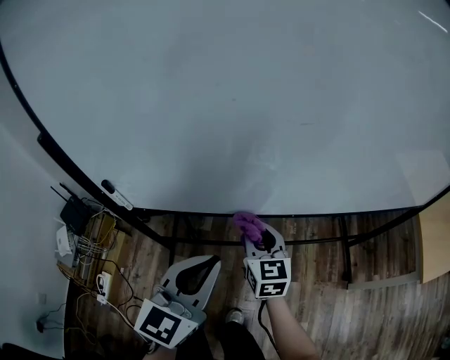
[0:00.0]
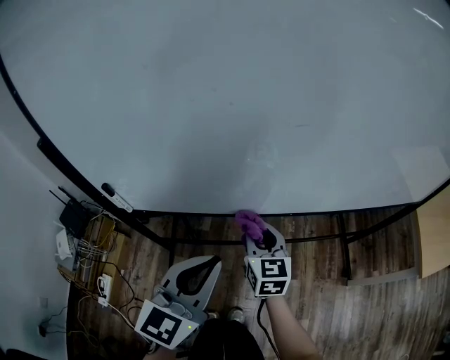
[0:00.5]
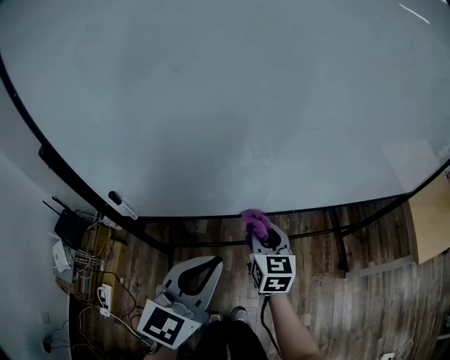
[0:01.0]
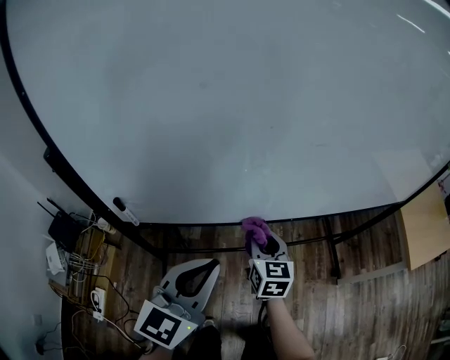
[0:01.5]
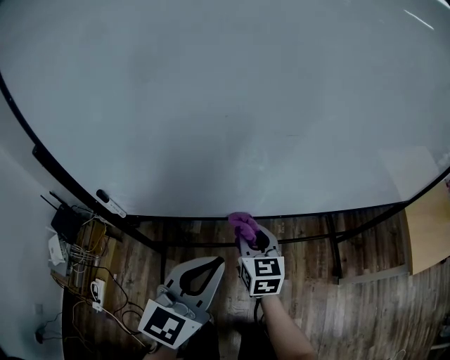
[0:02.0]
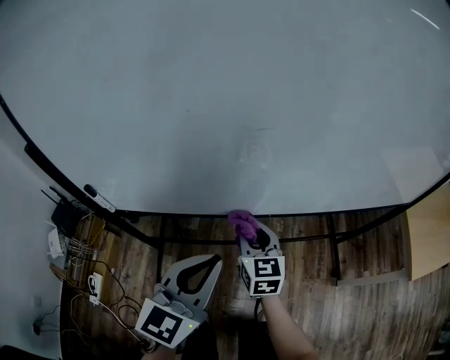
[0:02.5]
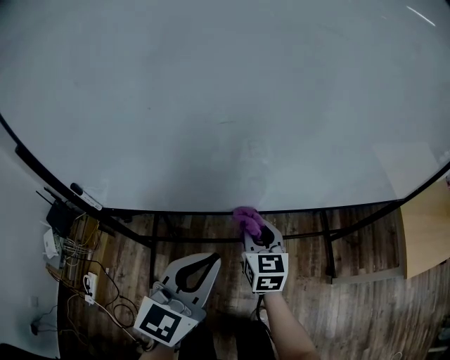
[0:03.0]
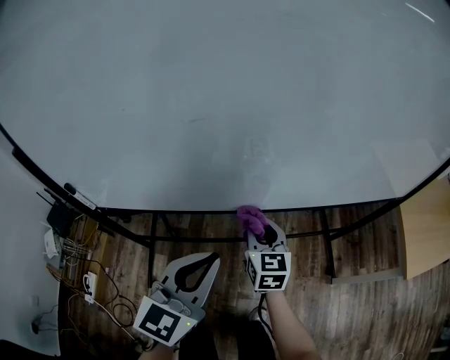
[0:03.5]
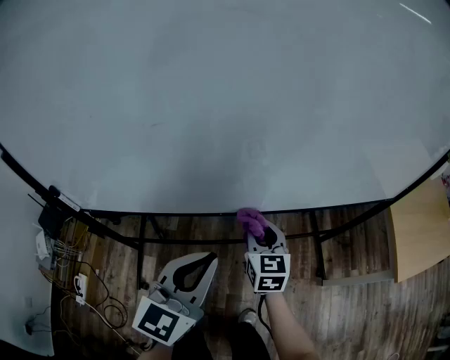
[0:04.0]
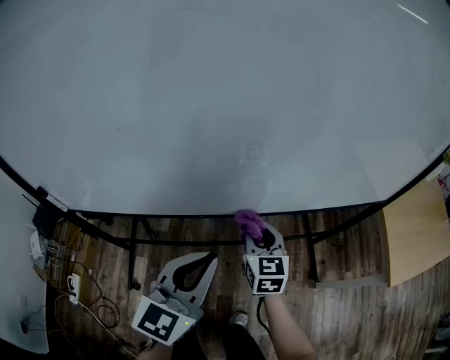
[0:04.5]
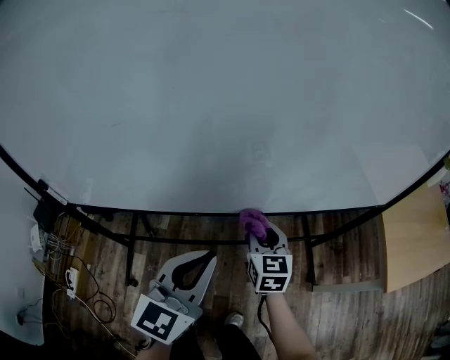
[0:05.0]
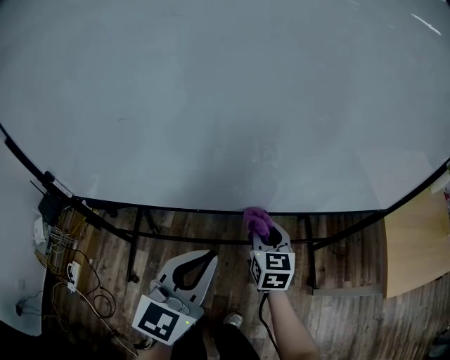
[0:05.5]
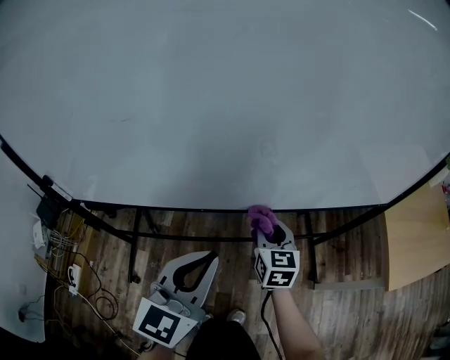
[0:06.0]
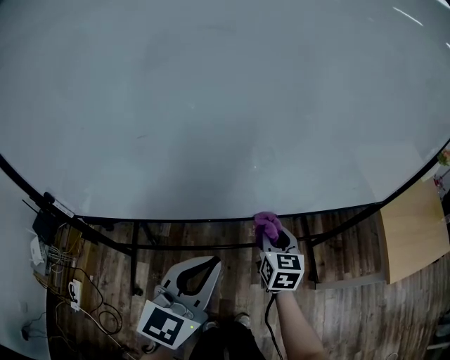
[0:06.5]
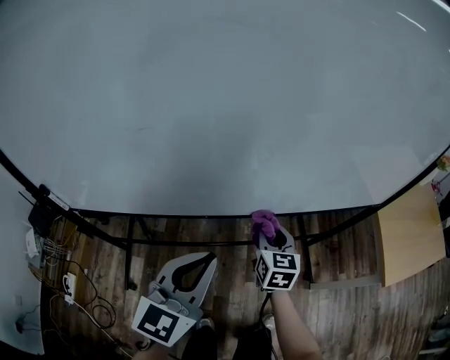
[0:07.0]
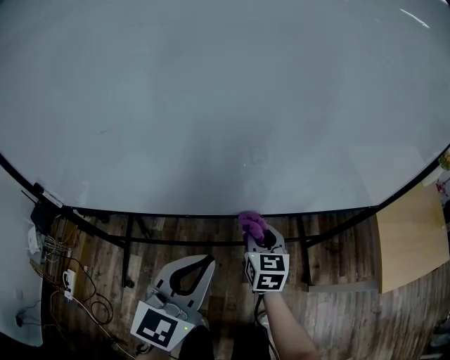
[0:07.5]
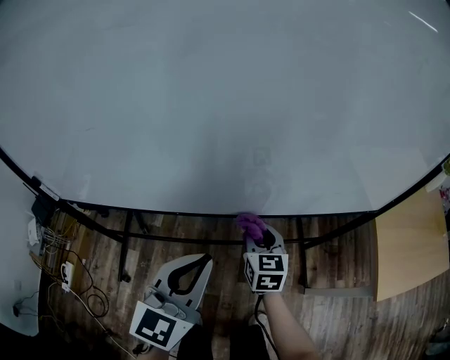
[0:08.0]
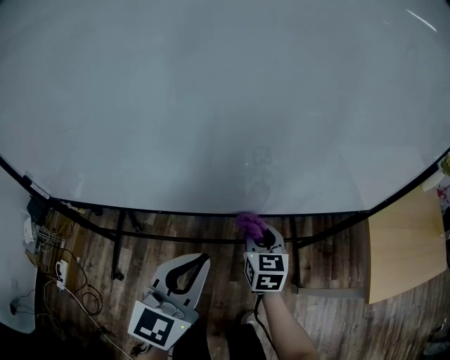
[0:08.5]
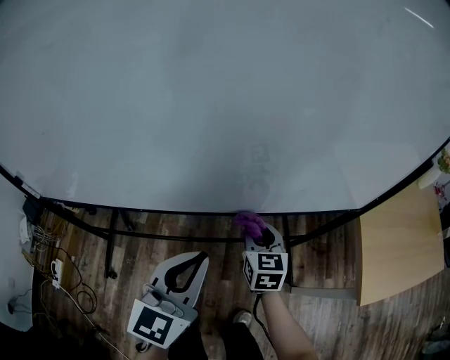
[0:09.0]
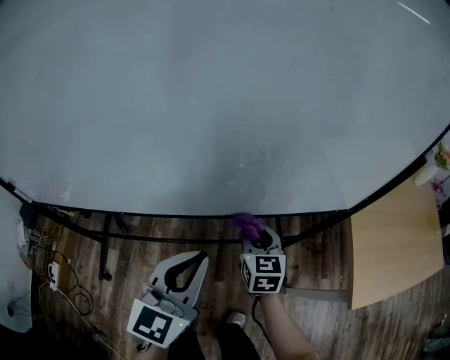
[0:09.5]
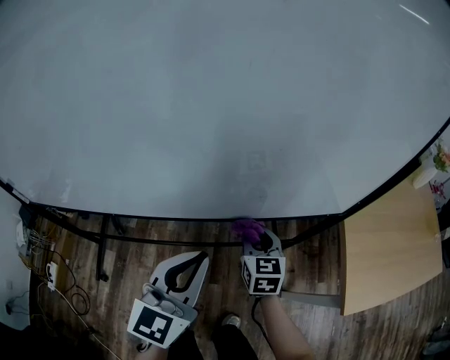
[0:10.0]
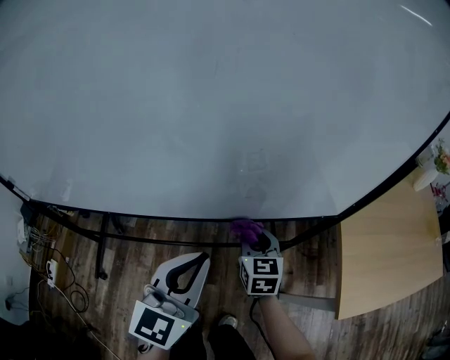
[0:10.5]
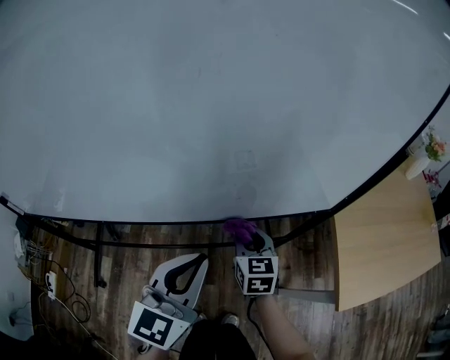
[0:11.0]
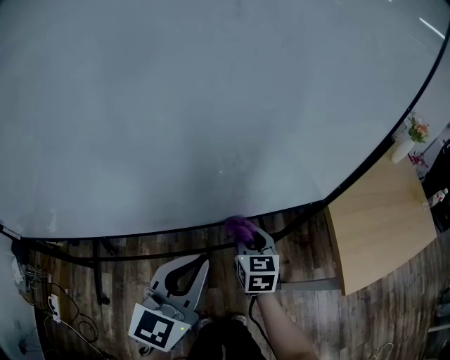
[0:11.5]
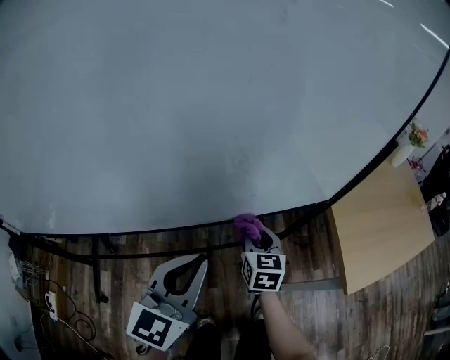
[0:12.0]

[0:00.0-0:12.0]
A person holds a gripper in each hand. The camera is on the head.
0:00.0 to 0:02.0: The grippers stay close to where they were, moving slightly.
0:02.0 to 0:04.0: The two grippers go roughly 15 cm to the right.
0:04.0 to 0:06.0: Both grippers move to the right, some 5 cm.
0:06.0 to 0:08.0: The left gripper shifts by approximately 5 cm.
0:08.0 to 0:10.0: Both grippers move to the right, roughly 15 cm.
0:10.0 to 0:12.0: The grippers stay close to where they were, moving slightly.

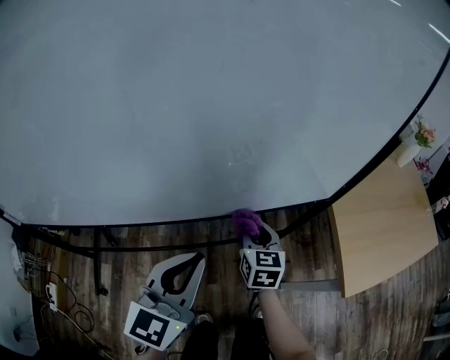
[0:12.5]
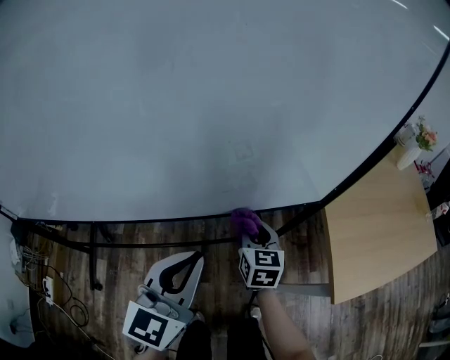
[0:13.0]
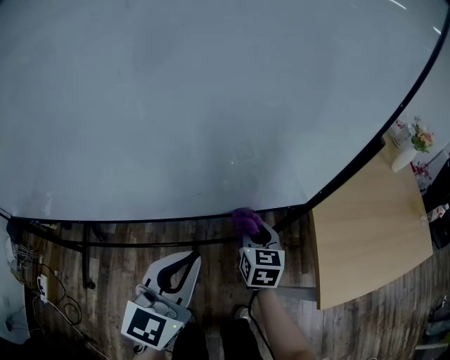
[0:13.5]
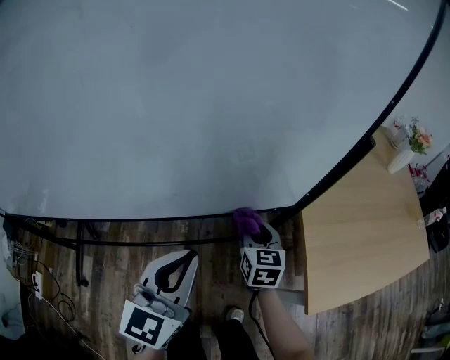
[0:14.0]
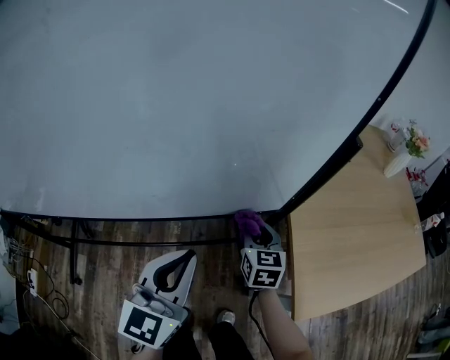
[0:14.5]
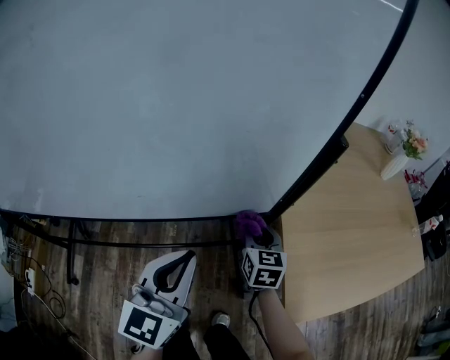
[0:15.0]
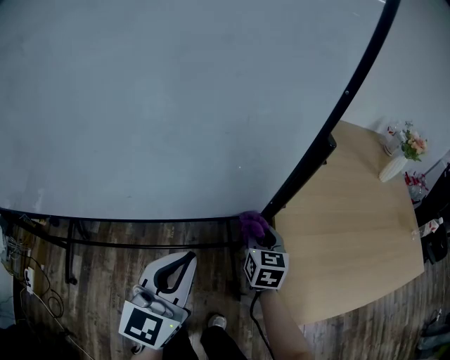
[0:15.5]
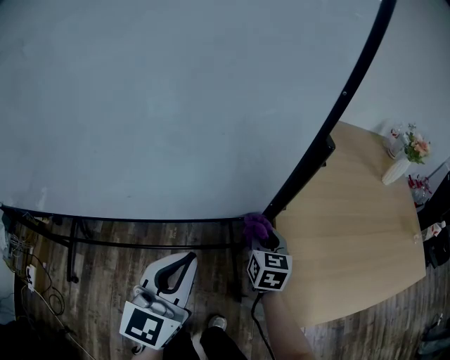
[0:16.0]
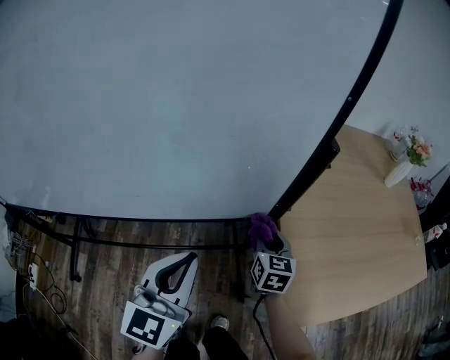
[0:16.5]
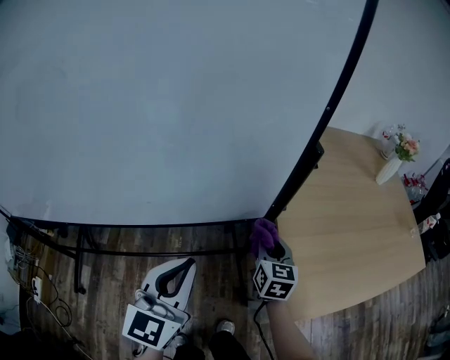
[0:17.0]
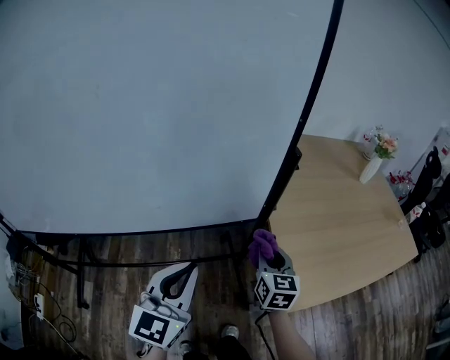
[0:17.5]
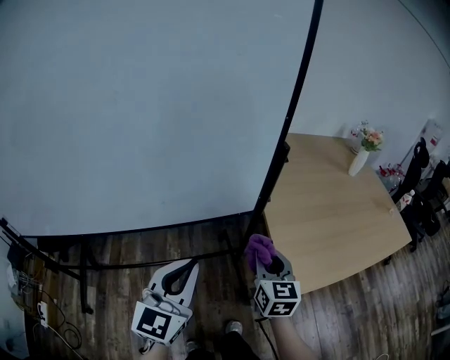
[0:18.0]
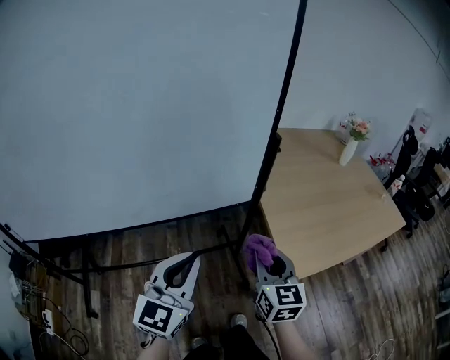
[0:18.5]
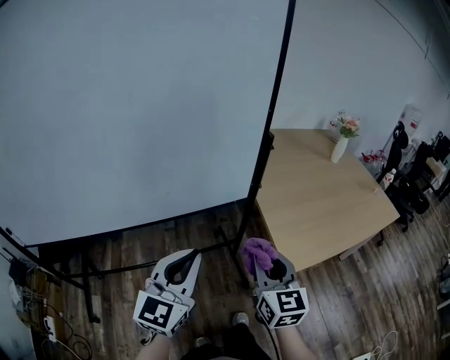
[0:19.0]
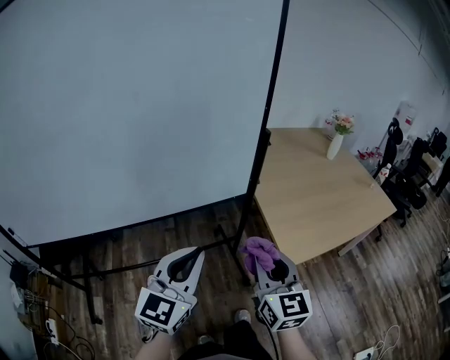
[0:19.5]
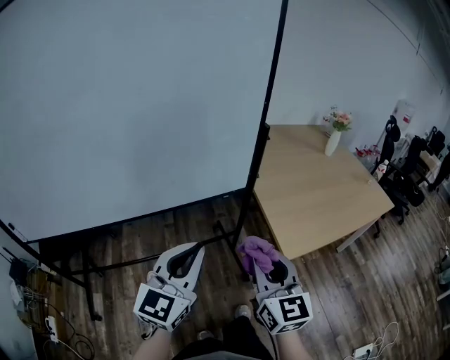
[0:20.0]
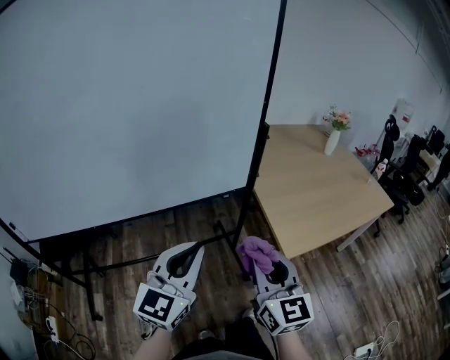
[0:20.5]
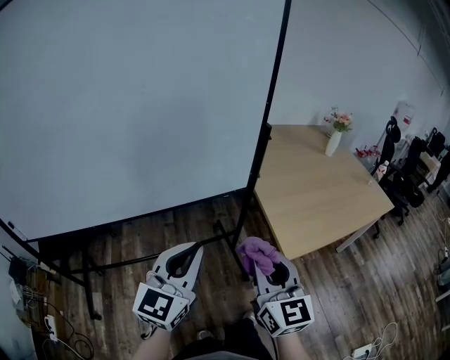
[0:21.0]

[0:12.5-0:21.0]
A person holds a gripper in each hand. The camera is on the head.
0:12.5 to 0:14.5: The right gripper heads to the right, covering about 15 cm. The left gripper shifts some 15 cm to the right and forward.
0:14.5 to 0:16.5: The left gripper moves to the right, approximately 5 cm; the right gripper heads to the right, covering some 10 cm.
0:16.5 to 0:19.0: The right gripper heads backward and upward, covering roughly 35 cm. The left gripper travels backward and upward by approximately 20 cm.
0:19.0 to 0:21.0: The right gripper shifts about 10 cm backward.

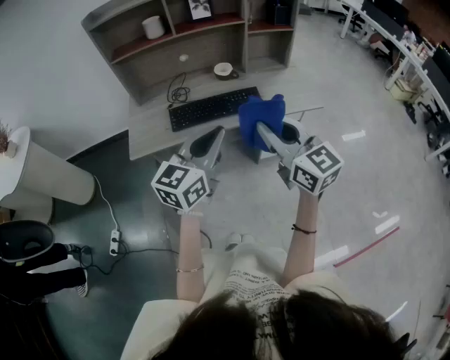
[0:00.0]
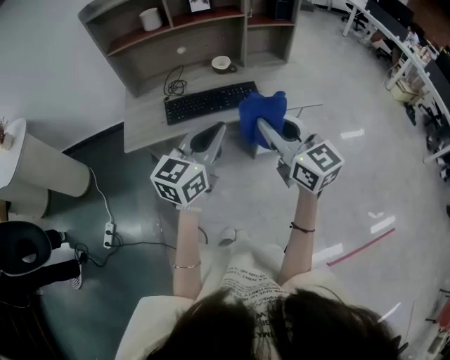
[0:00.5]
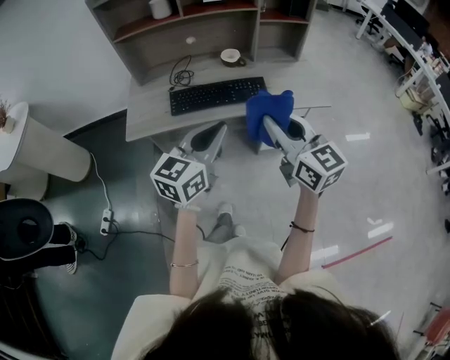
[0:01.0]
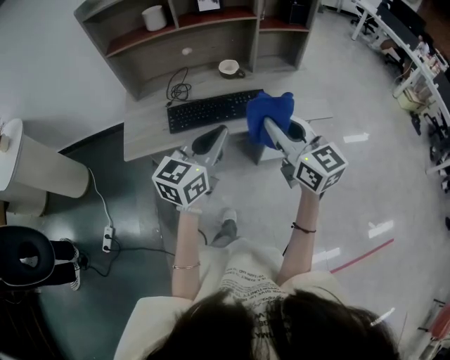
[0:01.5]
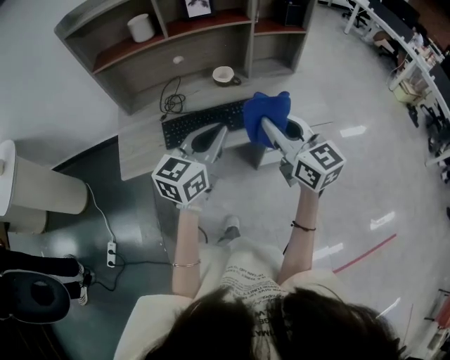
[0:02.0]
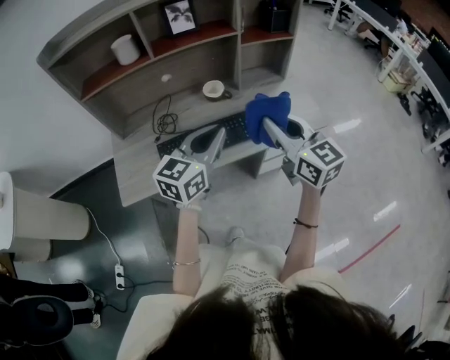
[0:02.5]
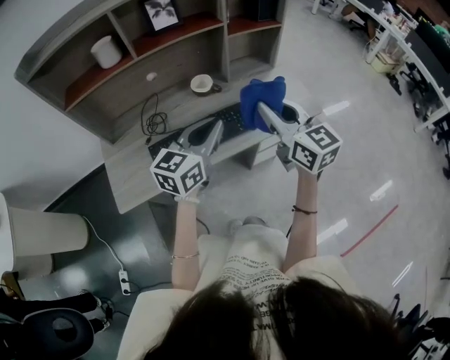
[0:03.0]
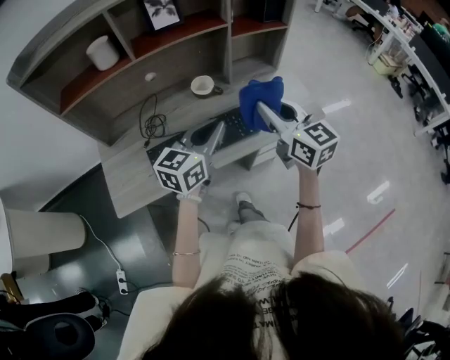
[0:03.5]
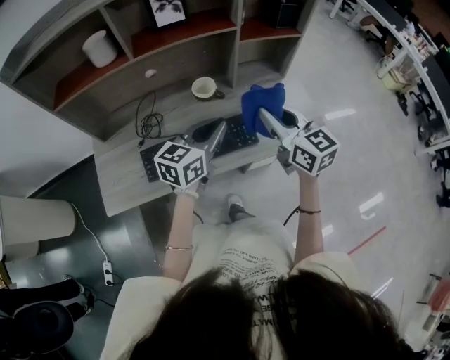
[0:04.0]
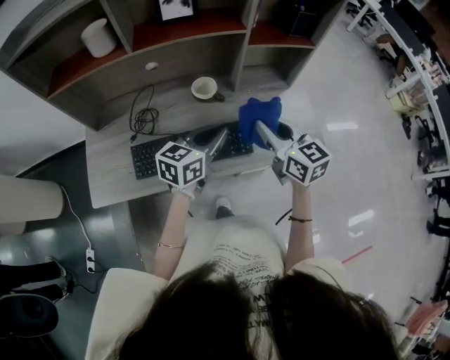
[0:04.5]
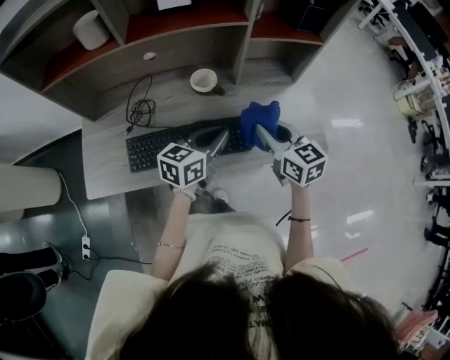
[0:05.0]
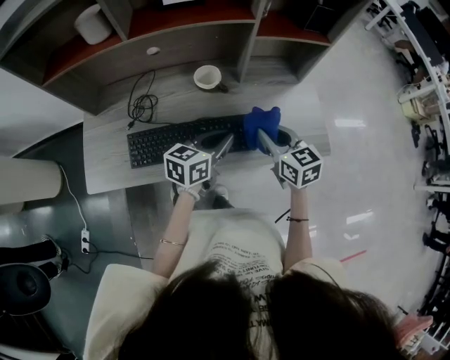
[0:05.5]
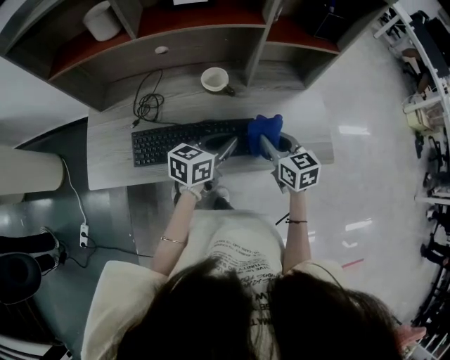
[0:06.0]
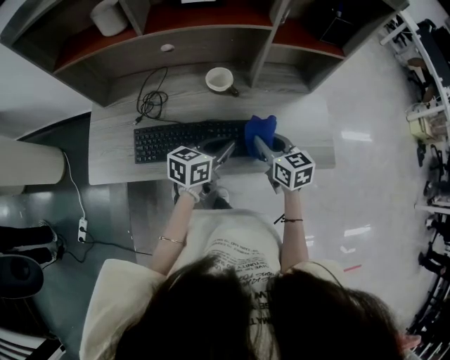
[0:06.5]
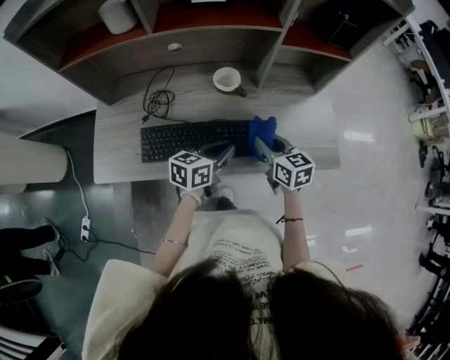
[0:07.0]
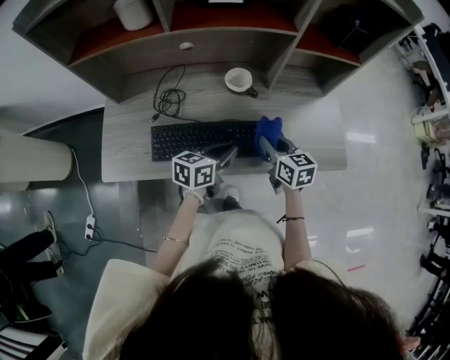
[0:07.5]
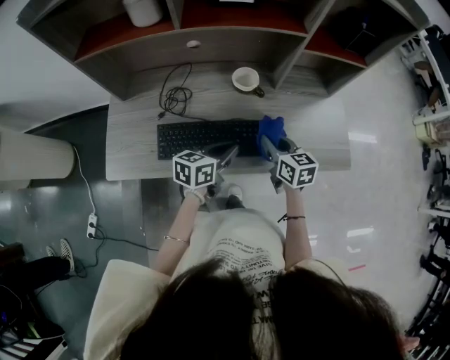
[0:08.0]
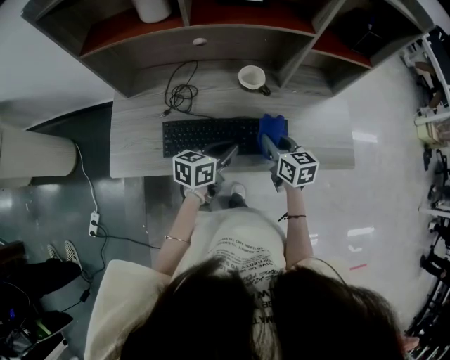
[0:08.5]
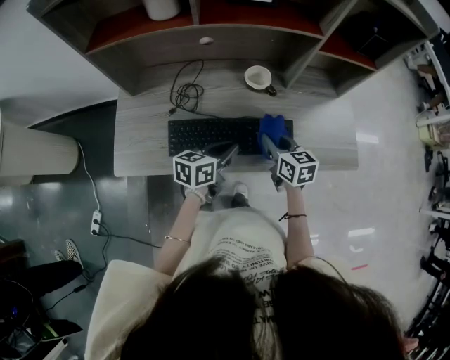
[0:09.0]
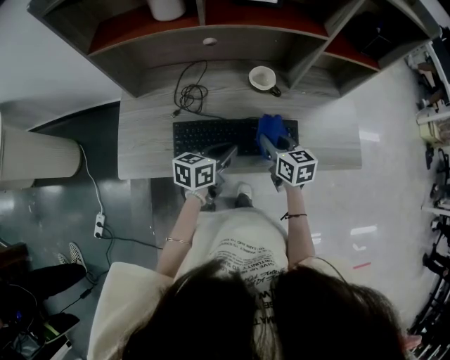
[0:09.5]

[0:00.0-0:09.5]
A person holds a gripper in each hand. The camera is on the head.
0:00.0 to 0:02.0: Both grippers move forward, roughly 15 cm.
0:02.0 to 0:04.0: The two grippers go approximately 20 cm forward.
0:04.0 to 0:05.5: Both grippers travel together downward, about 10 cm.
0:05.5 to 0:07.5: The right gripper shifts some 10 cm to the left and downward. The left gripper heads to the left, covering roughly 5 cm.
0:07.5 to 0:09.5: Both grippers move to the left, roughly 10 cm.
